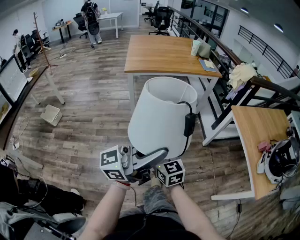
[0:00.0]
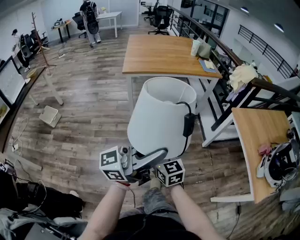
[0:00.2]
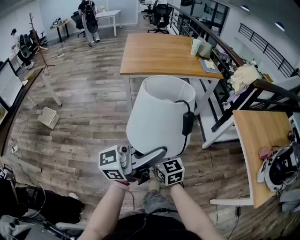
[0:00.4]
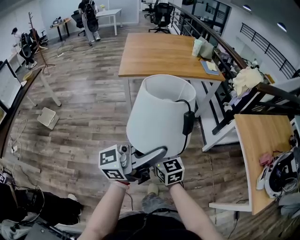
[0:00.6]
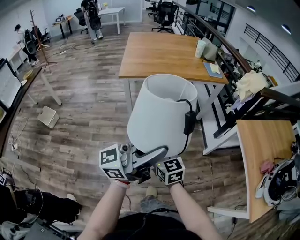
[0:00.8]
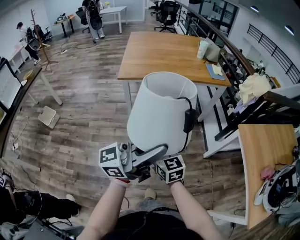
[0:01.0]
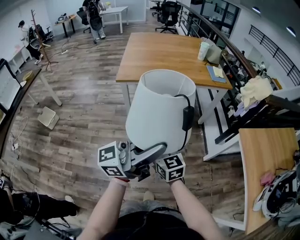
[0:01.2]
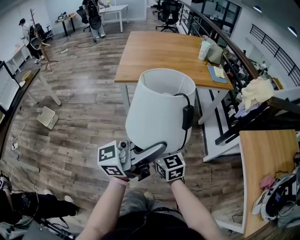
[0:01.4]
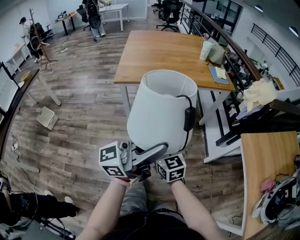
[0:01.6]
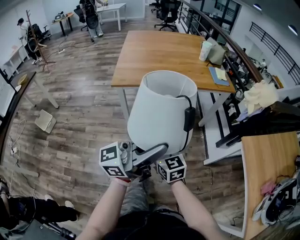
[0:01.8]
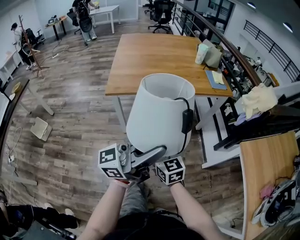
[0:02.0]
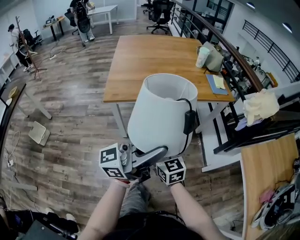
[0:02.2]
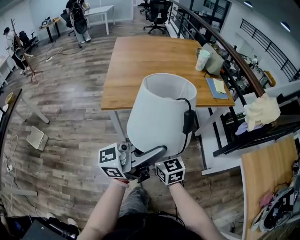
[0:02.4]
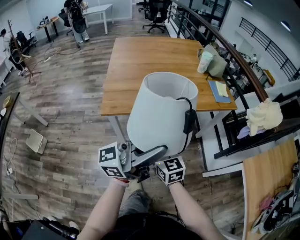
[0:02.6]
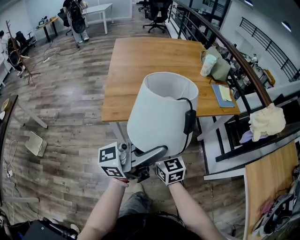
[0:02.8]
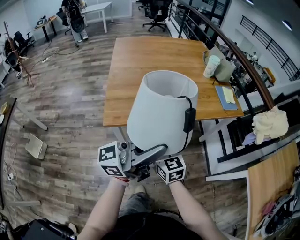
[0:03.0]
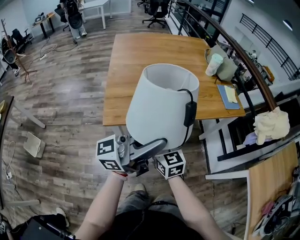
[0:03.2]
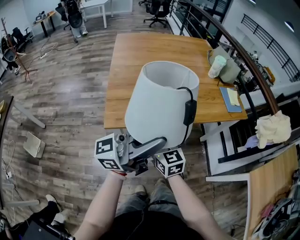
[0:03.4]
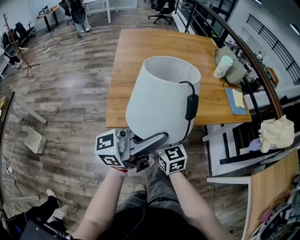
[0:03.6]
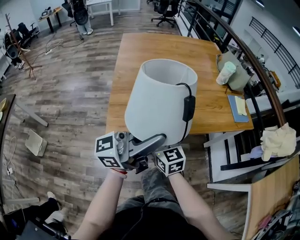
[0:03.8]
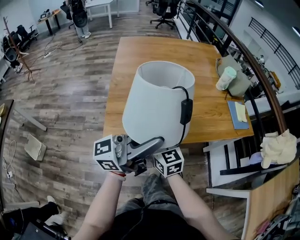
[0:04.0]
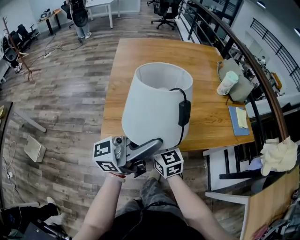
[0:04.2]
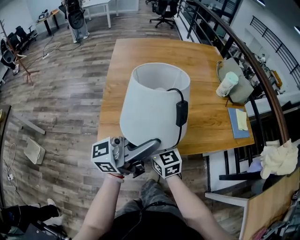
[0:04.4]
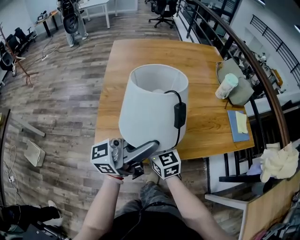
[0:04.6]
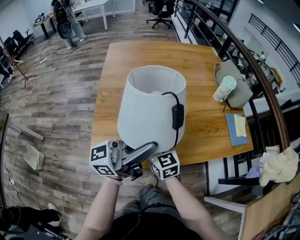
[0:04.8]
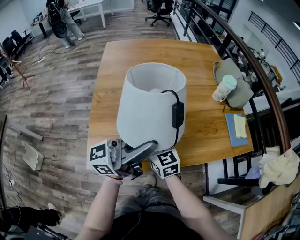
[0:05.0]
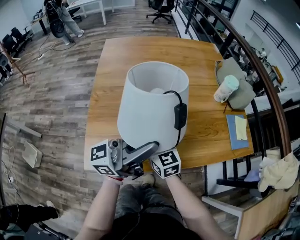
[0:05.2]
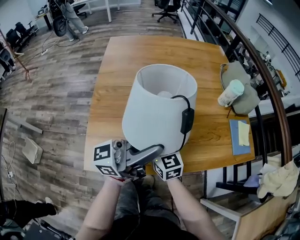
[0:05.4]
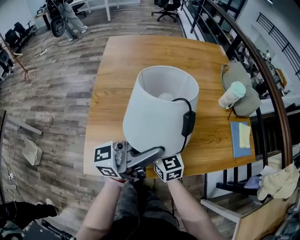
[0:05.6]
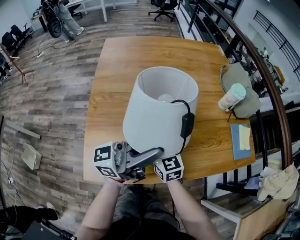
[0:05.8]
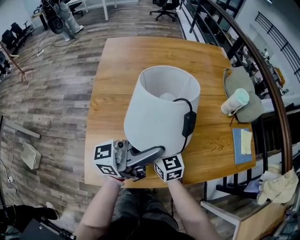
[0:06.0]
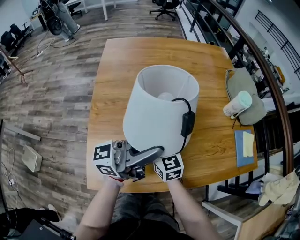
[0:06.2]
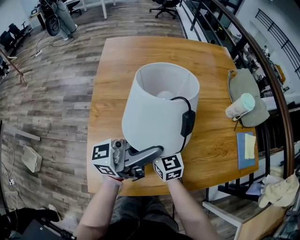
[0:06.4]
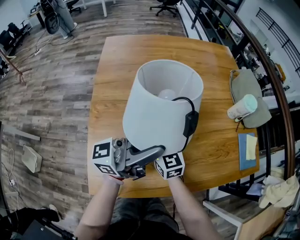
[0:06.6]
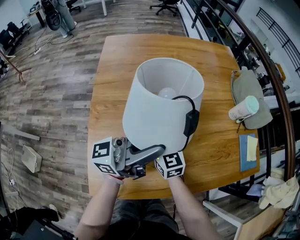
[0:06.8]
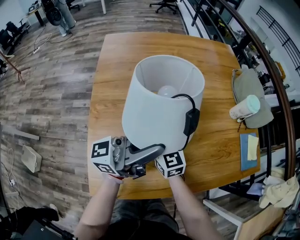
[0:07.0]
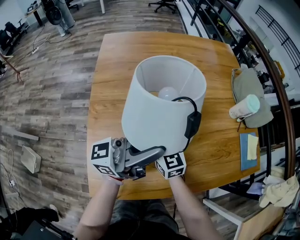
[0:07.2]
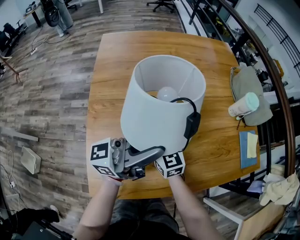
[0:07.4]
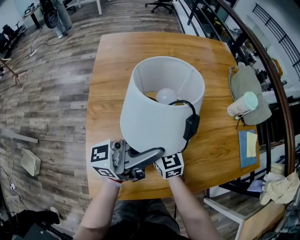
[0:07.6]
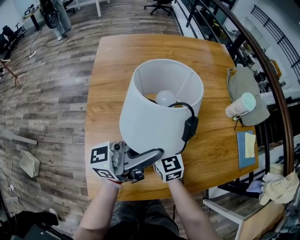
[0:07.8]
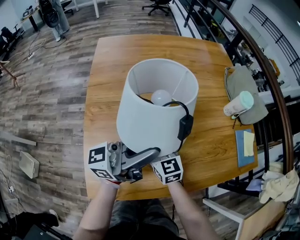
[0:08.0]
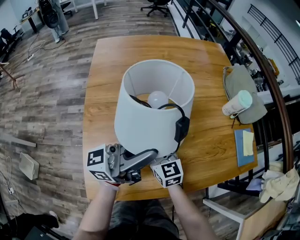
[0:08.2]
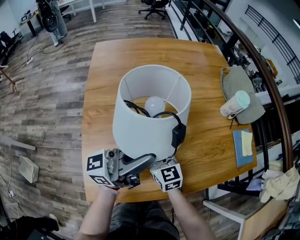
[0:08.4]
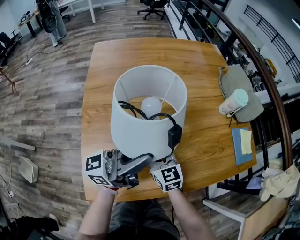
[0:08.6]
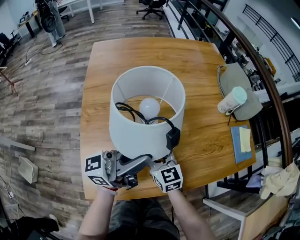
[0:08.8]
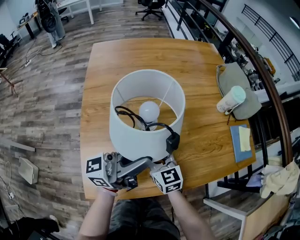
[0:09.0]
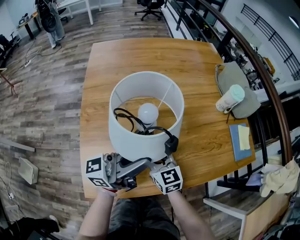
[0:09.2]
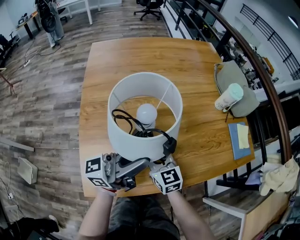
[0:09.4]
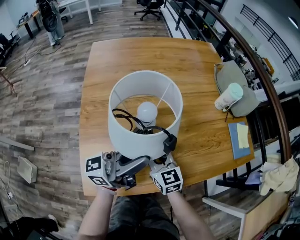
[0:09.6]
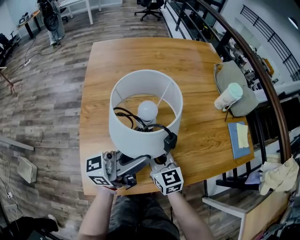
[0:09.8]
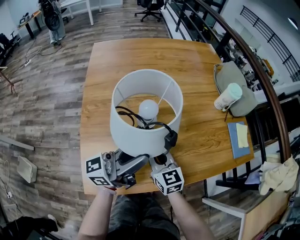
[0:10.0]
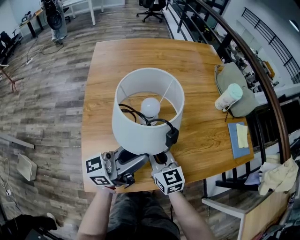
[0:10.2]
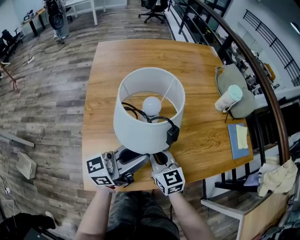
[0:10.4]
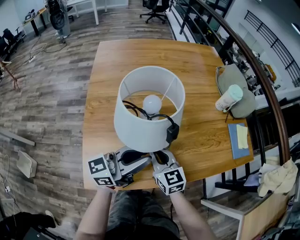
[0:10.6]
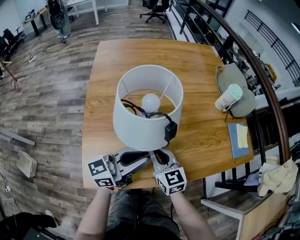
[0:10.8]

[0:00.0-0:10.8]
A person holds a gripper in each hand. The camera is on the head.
0:00.0 to 0:01.6: Both grippers travel together forward, approximately 30 cm.
0:01.6 to 0:03.0: The two grippers go approximately 30 cm forward and to the left.
0:03.0 to 0:04.6: The right gripper goes about 25 cm forward and to the left. The left gripper moves forward, some 20 cm.
0:04.6 to 0:06.2: The grippers both shift forward by some 15 cm.
0:06.2 to 0:07.8: The grippers stay close to where they were, moving slightly.
0:07.8 to 0:09.2: The right gripper moves backward and to the right, about 10 cm, while the left gripper ends up approximately 5 cm from where it was.
0:09.2 to 0:10.8: The left gripper travels downward by about 5 cm, and rotates about 20 degrees, while the right gripper closes up.

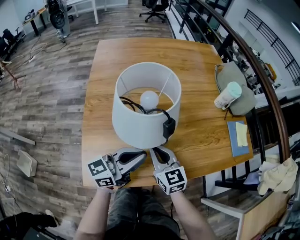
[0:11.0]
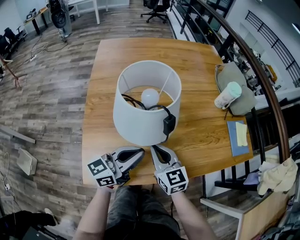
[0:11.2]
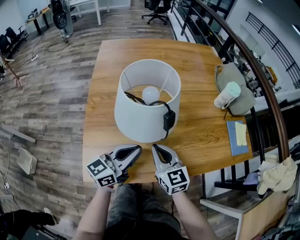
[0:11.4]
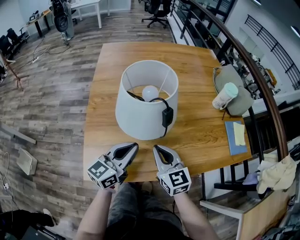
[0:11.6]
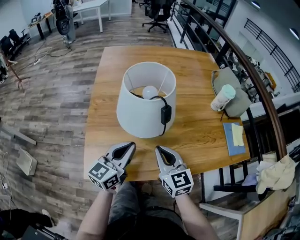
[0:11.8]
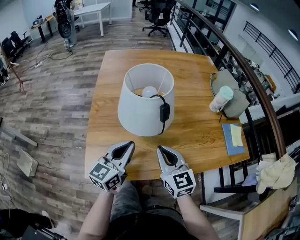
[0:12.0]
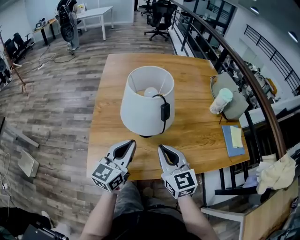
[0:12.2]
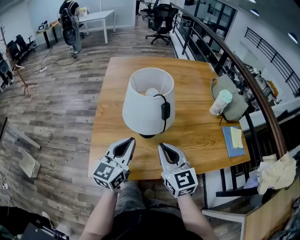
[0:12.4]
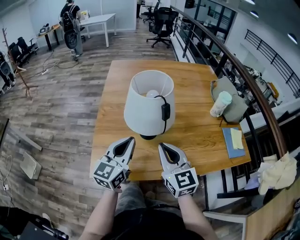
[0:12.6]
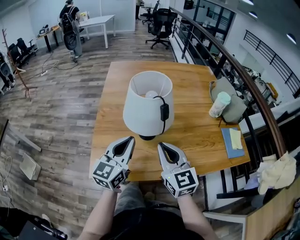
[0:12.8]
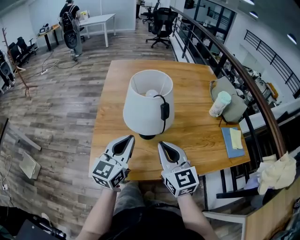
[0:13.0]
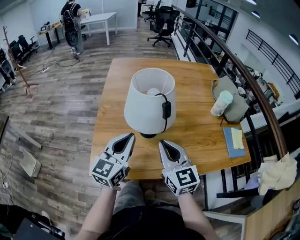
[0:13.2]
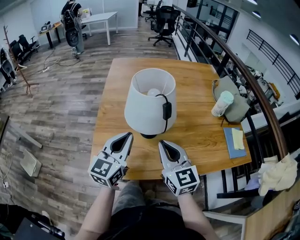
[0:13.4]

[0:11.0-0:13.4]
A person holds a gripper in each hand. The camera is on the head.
0:11.0 to 0:12.2: The left gripper ends up about 5 cm from where it was, and swivels about 40 degrees; the right gripper shifts some 10 cm upward.
0:12.2 to 0:13.4: The grippers make only small movements.

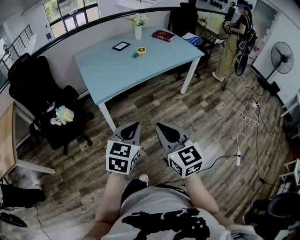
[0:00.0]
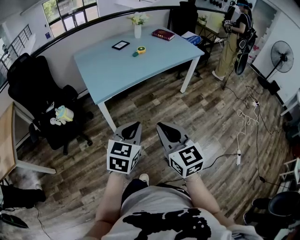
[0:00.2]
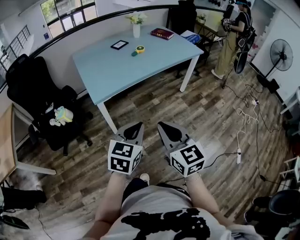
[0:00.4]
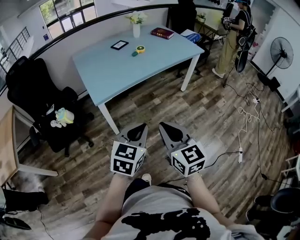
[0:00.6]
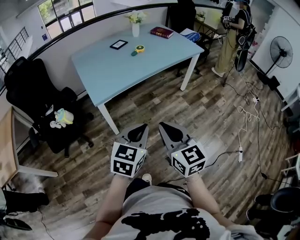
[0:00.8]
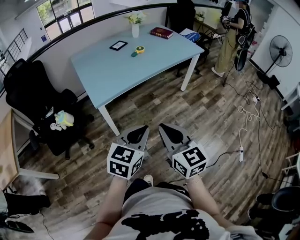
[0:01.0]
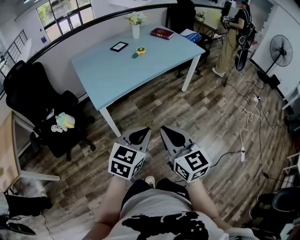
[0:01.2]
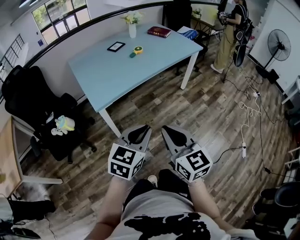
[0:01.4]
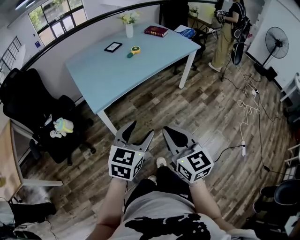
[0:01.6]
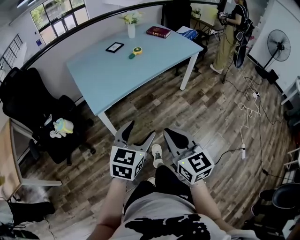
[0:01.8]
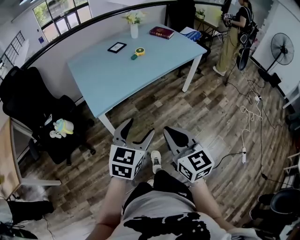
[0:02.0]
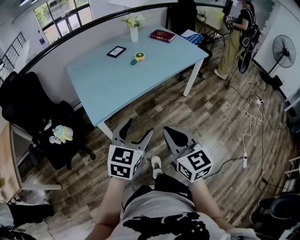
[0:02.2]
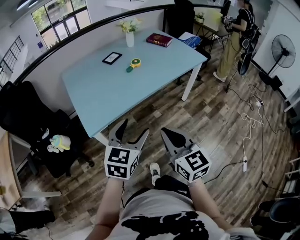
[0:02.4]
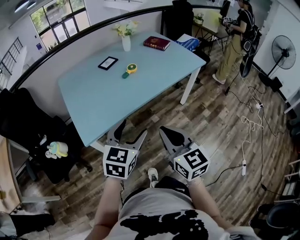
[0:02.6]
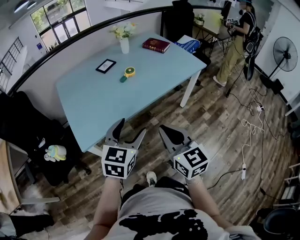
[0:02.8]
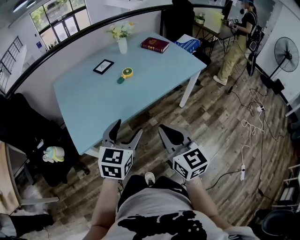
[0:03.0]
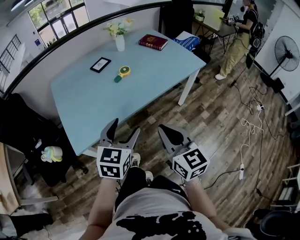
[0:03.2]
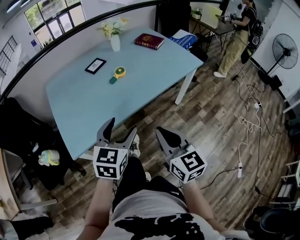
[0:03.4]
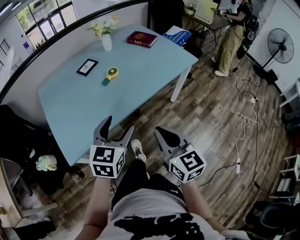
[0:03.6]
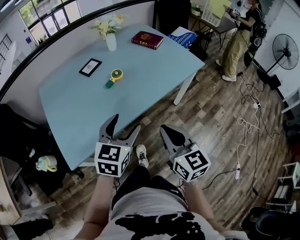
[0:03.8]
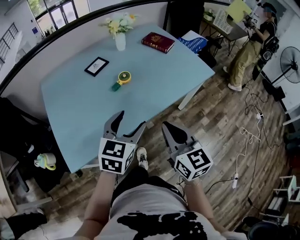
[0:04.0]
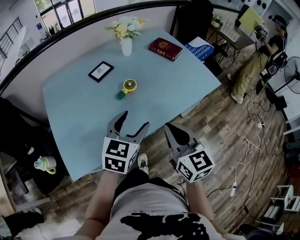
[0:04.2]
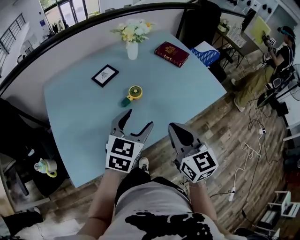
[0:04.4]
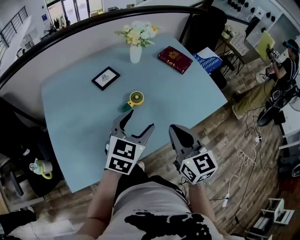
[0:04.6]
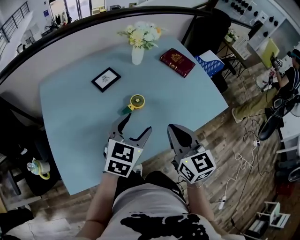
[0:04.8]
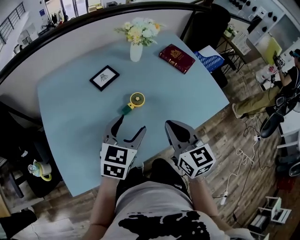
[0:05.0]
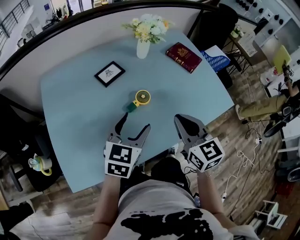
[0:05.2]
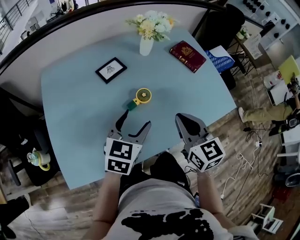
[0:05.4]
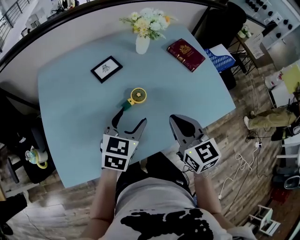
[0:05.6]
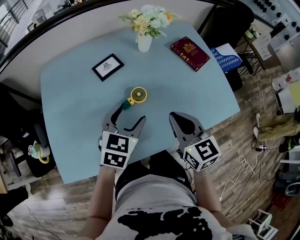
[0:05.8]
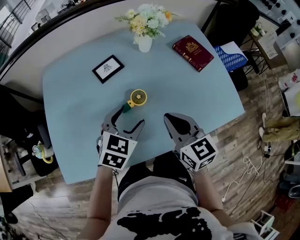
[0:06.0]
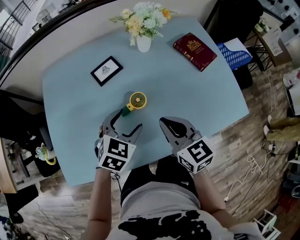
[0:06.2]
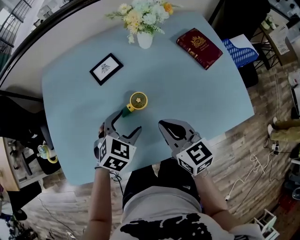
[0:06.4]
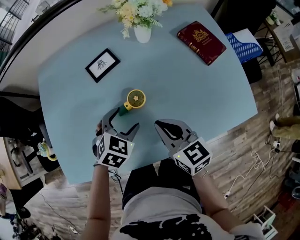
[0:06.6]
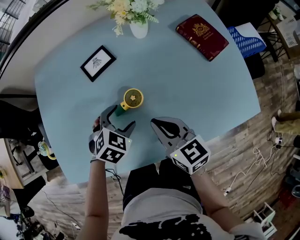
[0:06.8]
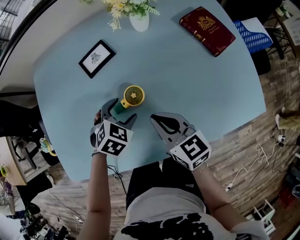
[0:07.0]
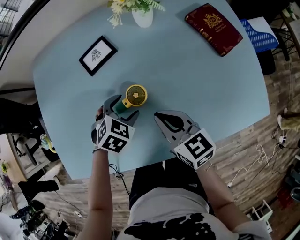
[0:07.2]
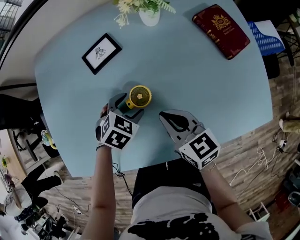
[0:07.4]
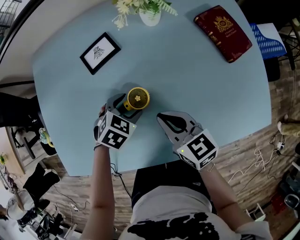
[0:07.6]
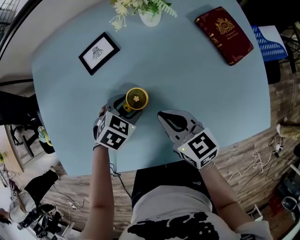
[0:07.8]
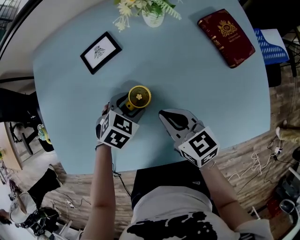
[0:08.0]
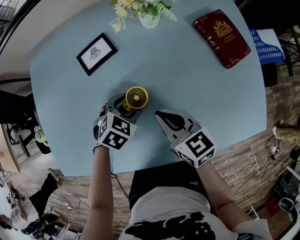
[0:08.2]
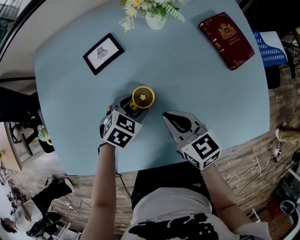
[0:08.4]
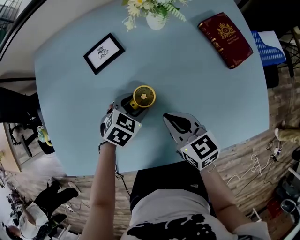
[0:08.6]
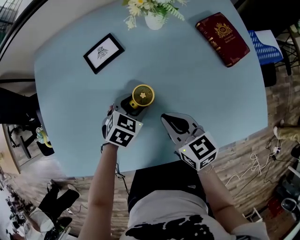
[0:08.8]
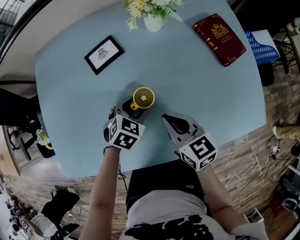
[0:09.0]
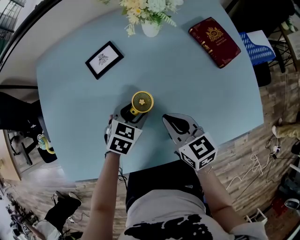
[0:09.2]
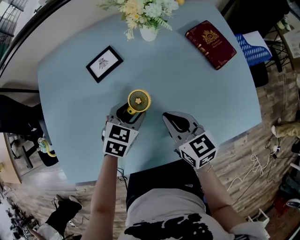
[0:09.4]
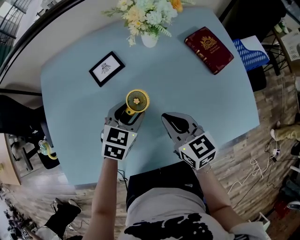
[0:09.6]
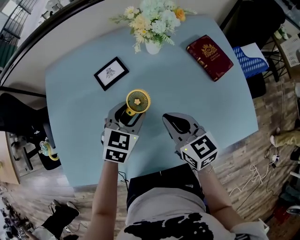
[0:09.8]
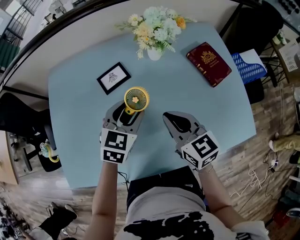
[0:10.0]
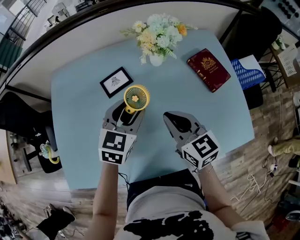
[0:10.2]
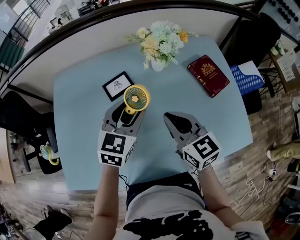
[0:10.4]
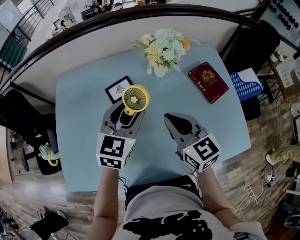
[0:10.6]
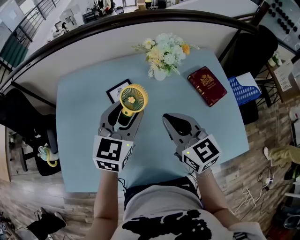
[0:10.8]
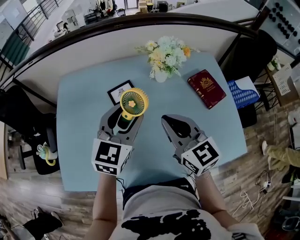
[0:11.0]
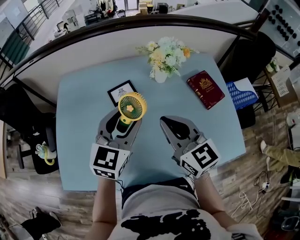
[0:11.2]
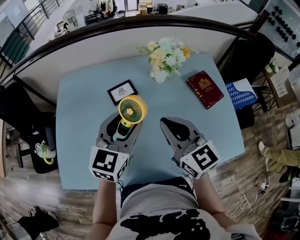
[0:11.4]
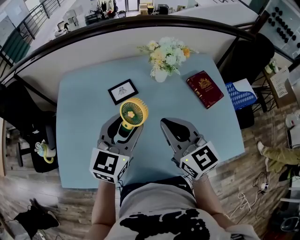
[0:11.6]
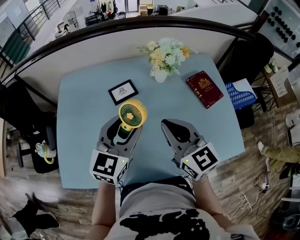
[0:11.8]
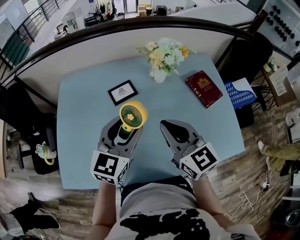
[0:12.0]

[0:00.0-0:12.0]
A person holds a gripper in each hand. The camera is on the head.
0:00.0 to 0:01.6: The left gripper opens.
0:01.6 to 0:03.0: Both grippers move forward, about 30 cm.
0:03.0 to 0:04.4: The grippers both shift forward by some 30 cm.
0:04.4 to 0:06.0: Both grippers travel together forward and downward, some 15 cm. The right gripper swivels approximately 20 degrees.
0:06.0 to 0:07.6: The grippers both shift downward and forward by approximately 15 cm. The left gripper turns by about 30 degrees, while the right gripper rotates roughly 20 degrees.
0:07.6 to 0:09.0: There are only small adjustments of the grippers.
0:09.0 to 0:10.4: The right gripper is displaced upward and forward by approximately 15 cm, while the left gripper heads upward, covering about 25 cm, and angles its fingers upward, by some 30 degrees.
0:10.4 to 0:12.0: The left gripper is displaced backward and upward by about 10 cm, while the right gripper shifts approximately 5 cm upward.
